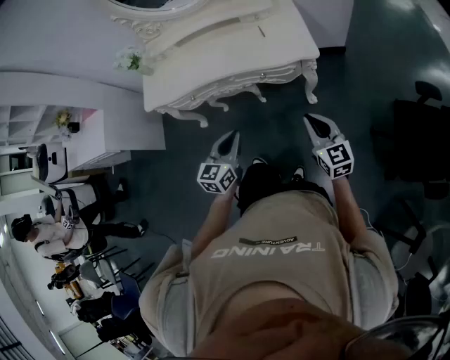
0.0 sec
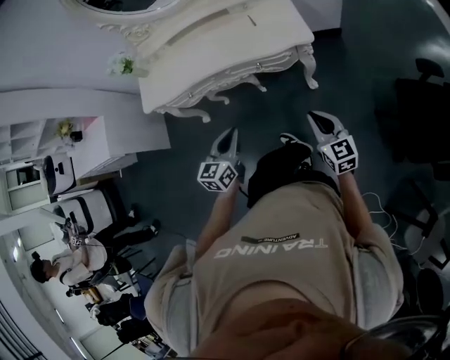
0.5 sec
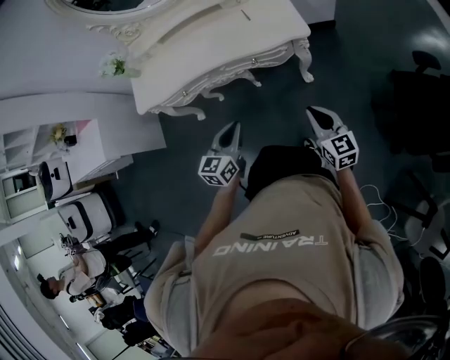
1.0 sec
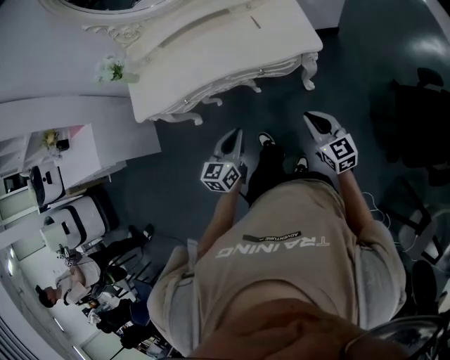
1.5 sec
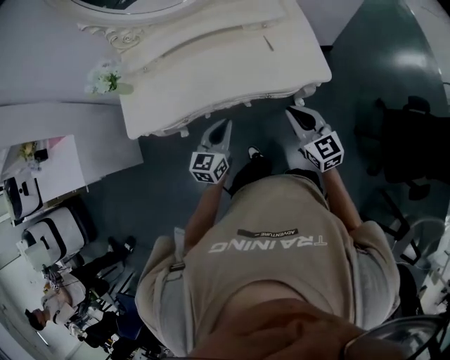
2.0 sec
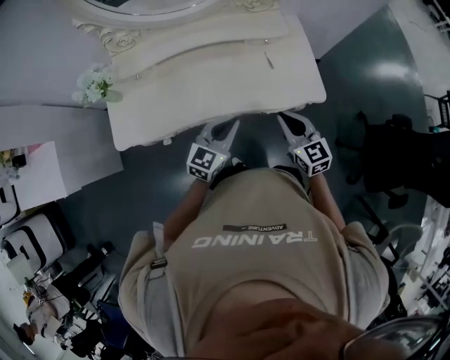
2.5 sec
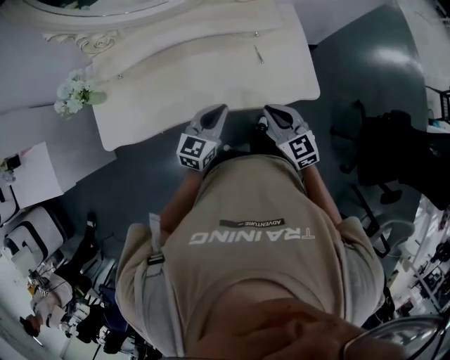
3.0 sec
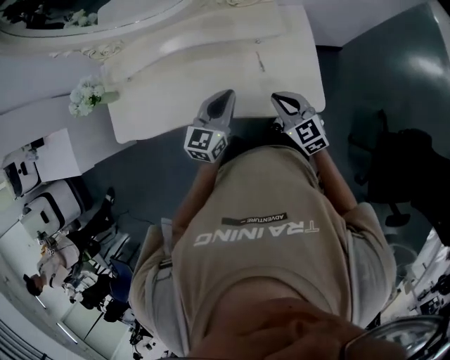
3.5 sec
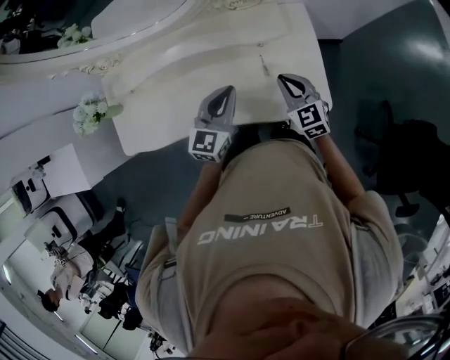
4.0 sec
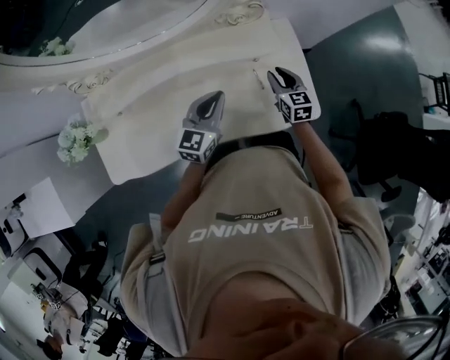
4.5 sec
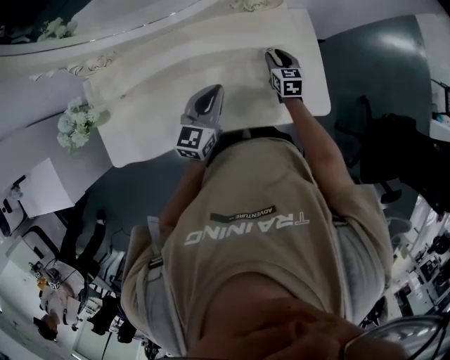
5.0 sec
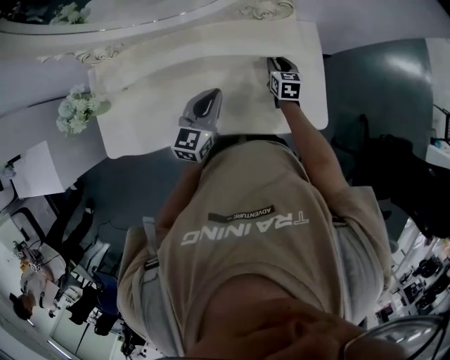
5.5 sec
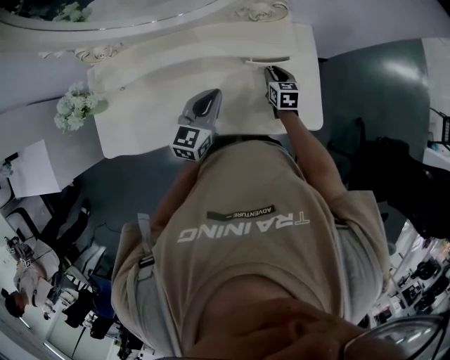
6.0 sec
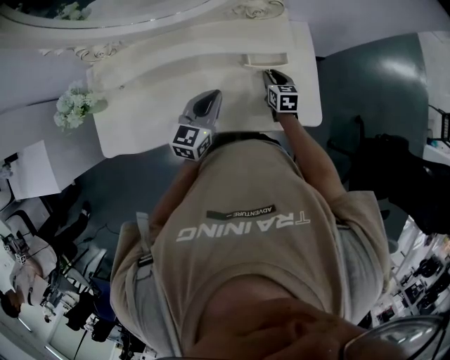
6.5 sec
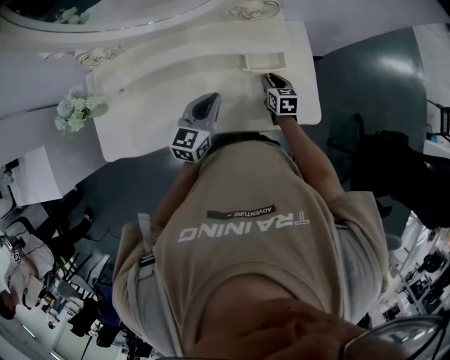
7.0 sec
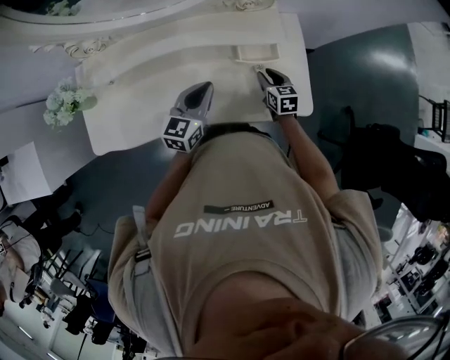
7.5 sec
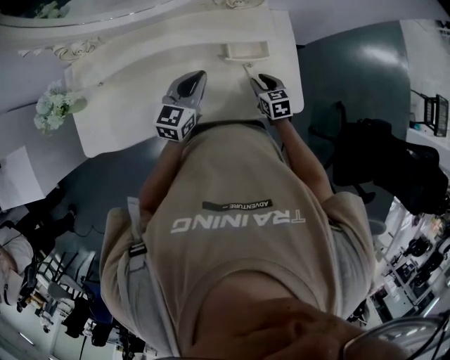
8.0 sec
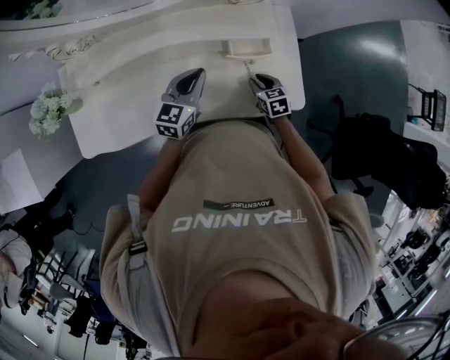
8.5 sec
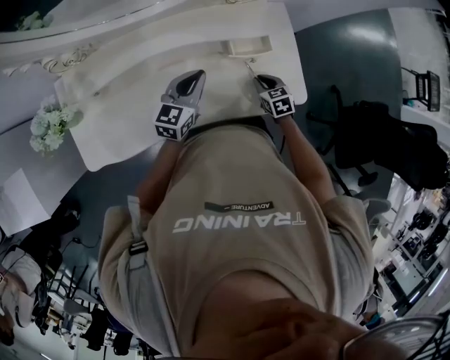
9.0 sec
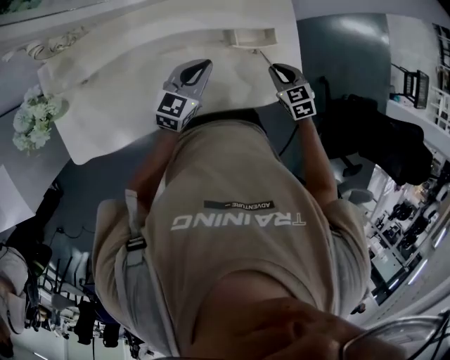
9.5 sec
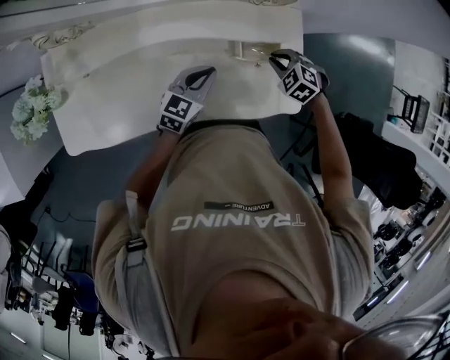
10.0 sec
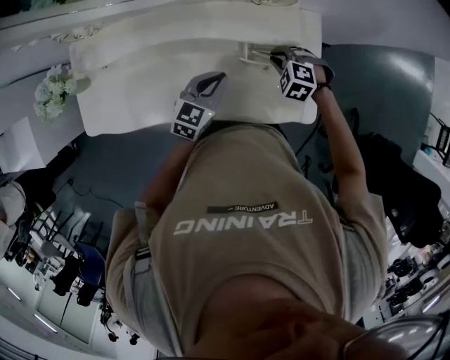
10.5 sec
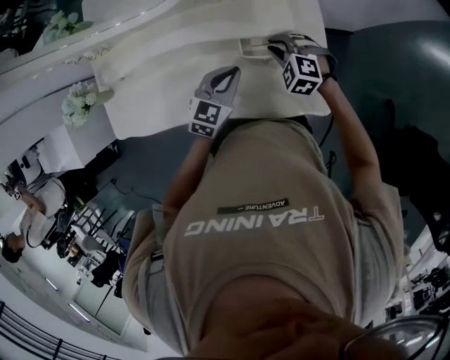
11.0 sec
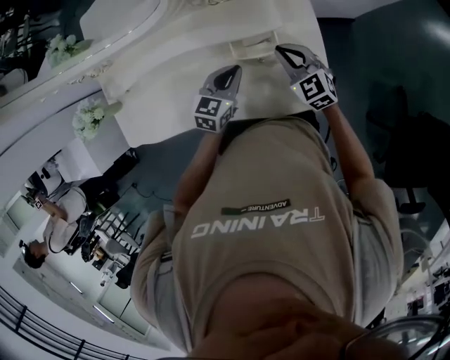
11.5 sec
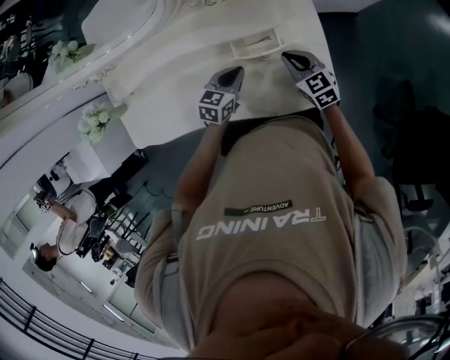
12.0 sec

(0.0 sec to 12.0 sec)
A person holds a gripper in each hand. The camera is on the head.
0.0 sec - 2.0 sec: The left gripper is displaced forward by some 25 cm. Meanwhile the right gripper goes roughly 30 cm forward and to the left.
2.0 sec - 4.0 sec: The right gripper is displaced forward by some 30 cm; the left gripper heads forward and to the right, covering some 30 cm.
4.0 sec - 6.0 sec: The right gripper travels downward, forward and to the left by about 15 cm, changes its angle by approximately 30 degrees, and opens its fingers, while the left gripper shifts roughly 10 cm to the left.
6.0 sec - 8.0 sec: The right gripper heads backward, covering some 10 cm.
8.0 sec - 10.0 sec: The right gripper goes roughly 10 cm forward, and rolls counterclockwise, seen from behind, by some 50 degrees. The left gripper moves downward, roughly 10 cm.
10.0 sec - 12.0 sec: The left gripper is displaced to the right and downward by roughly 15 cm, and swivels about 20 degrees, while the right gripper heads to the right, covering about 10 cm, and tips its fingers upward by some 40 degrees.

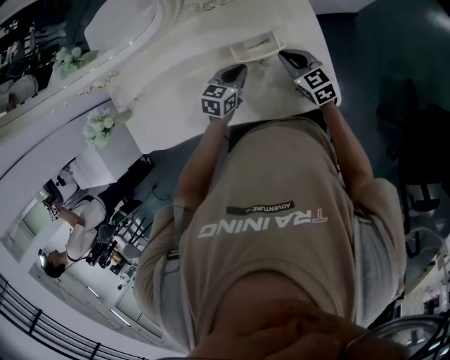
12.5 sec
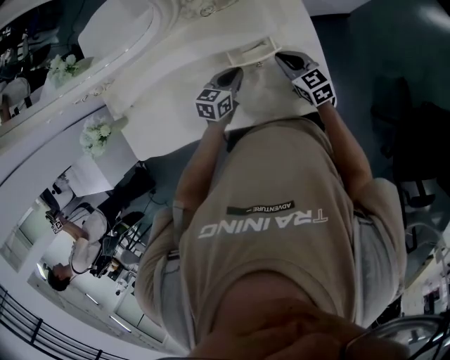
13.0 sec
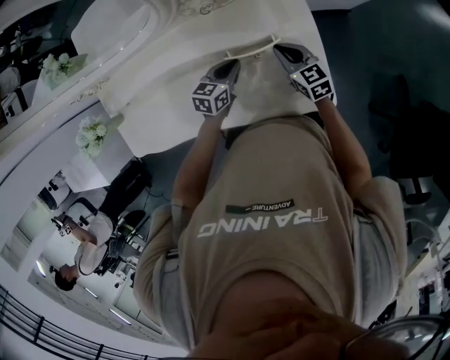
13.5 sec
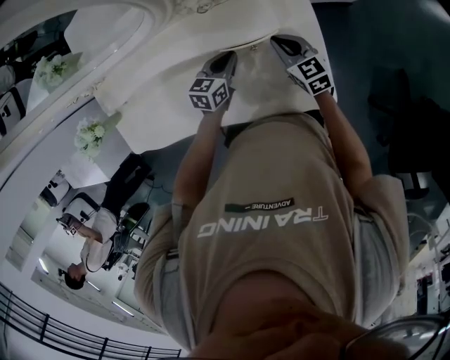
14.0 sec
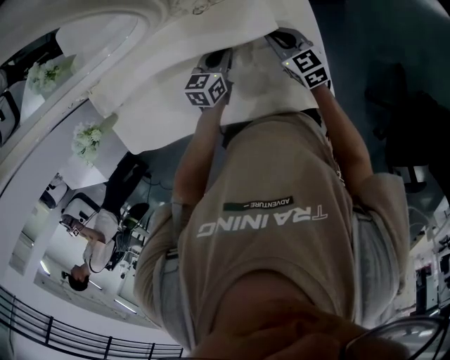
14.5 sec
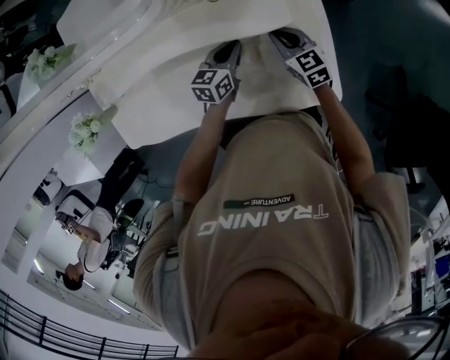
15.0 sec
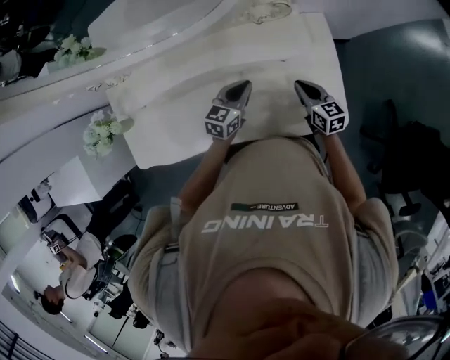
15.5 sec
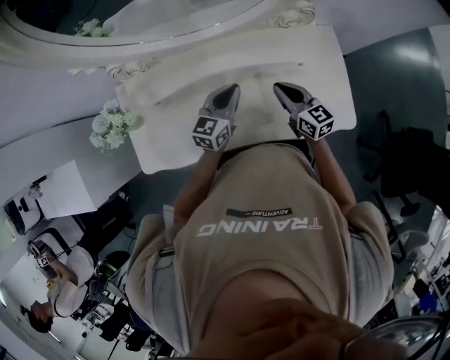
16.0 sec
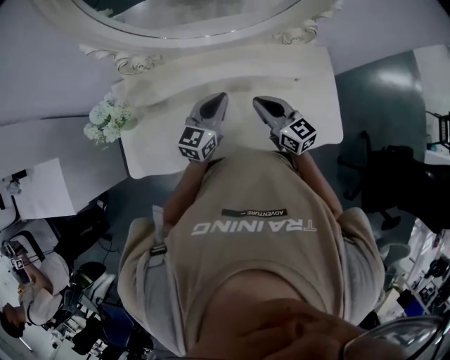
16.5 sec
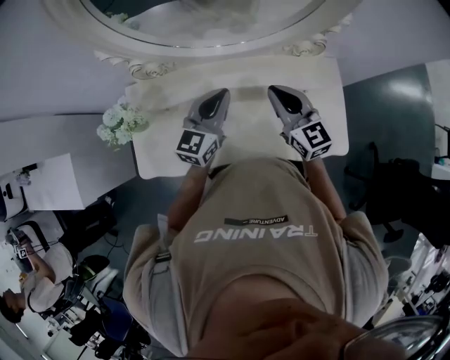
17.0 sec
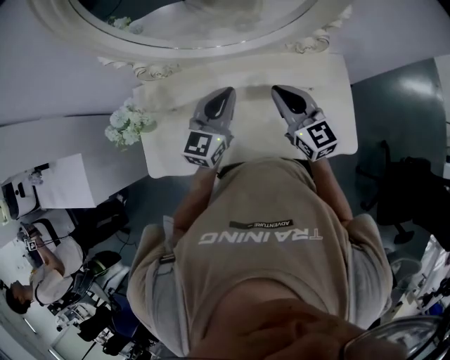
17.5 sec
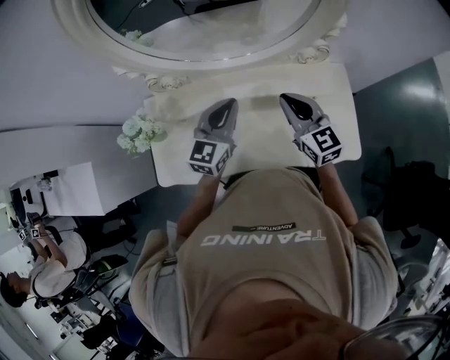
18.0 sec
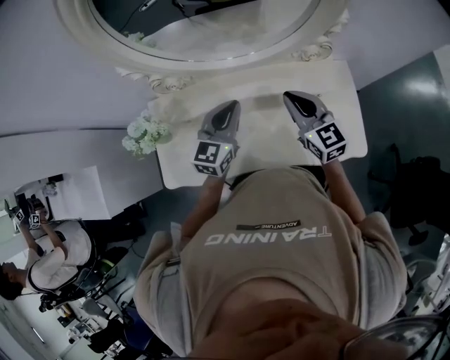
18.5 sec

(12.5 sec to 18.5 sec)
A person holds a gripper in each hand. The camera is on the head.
12.5 sec - 14.5 sec: The two grippers go about 10 cm forward.
14.5 sec - 16.5 sec: The left gripper moves to the left and upward, about 35 cm, and rotates approximately 30 degrees, while the right gripper heads to the left, upward and backward, covering approximately 35 cm.
16.5 sec - 18.5 sec: The two grippers go approximately 10 cm upward.

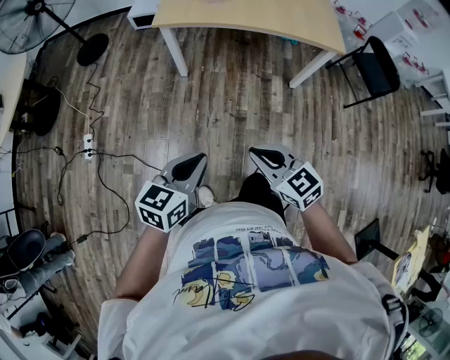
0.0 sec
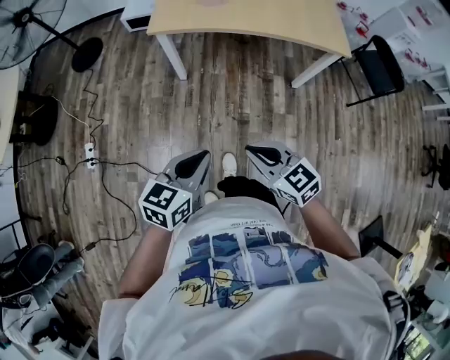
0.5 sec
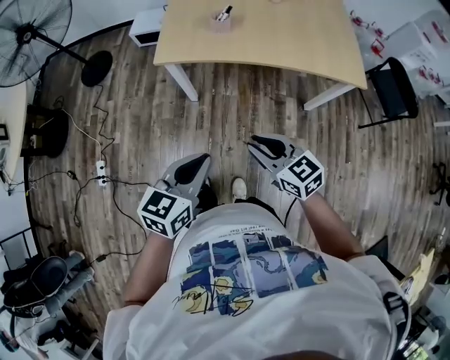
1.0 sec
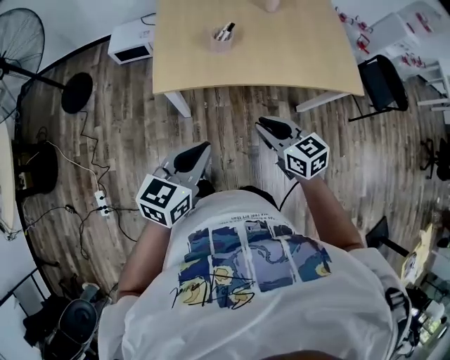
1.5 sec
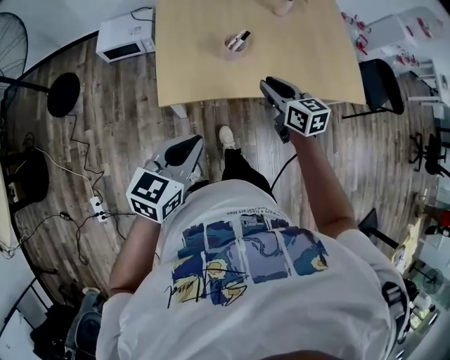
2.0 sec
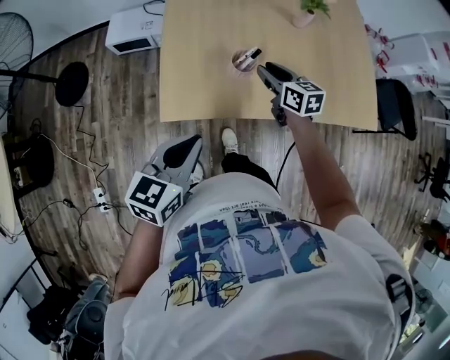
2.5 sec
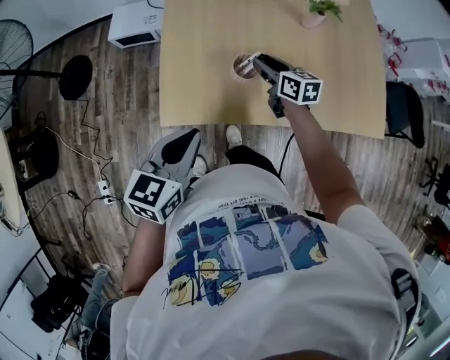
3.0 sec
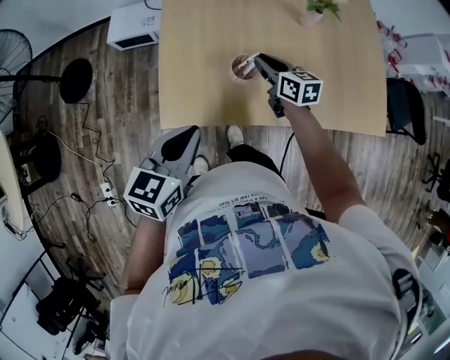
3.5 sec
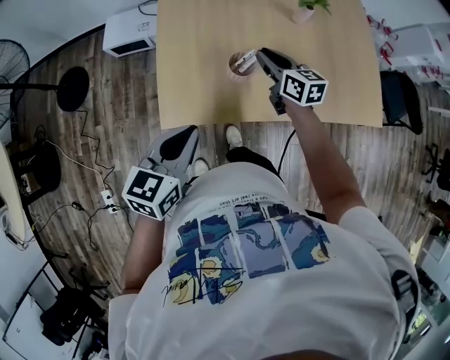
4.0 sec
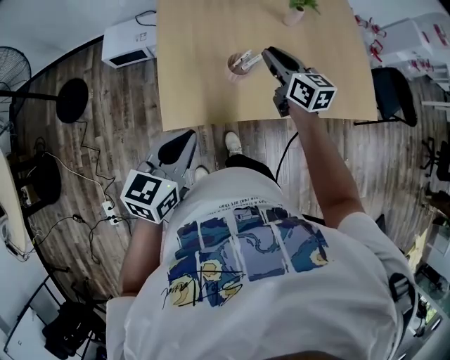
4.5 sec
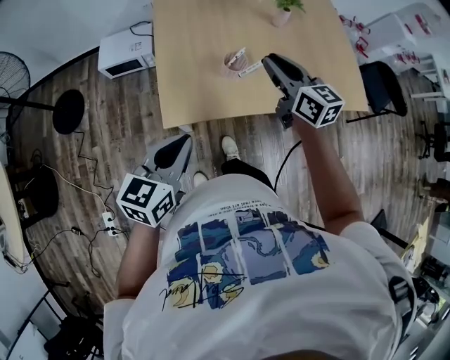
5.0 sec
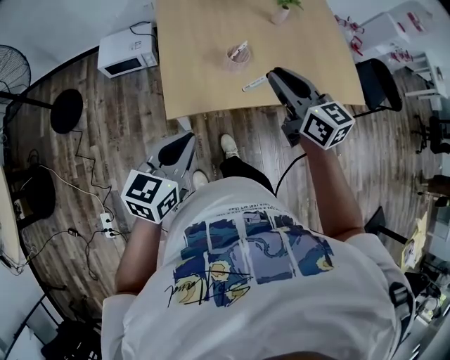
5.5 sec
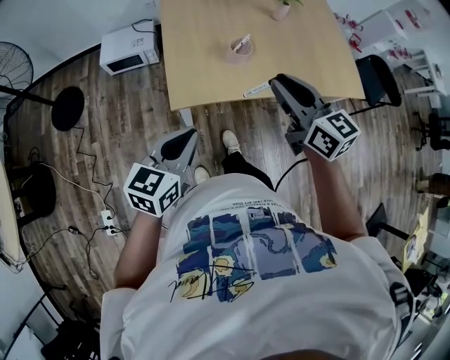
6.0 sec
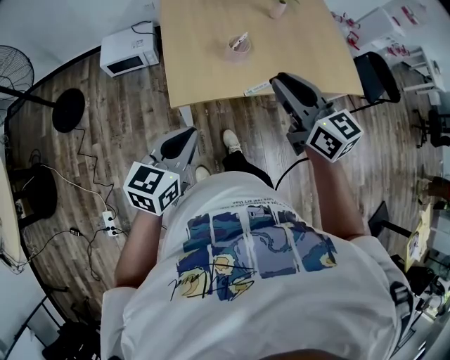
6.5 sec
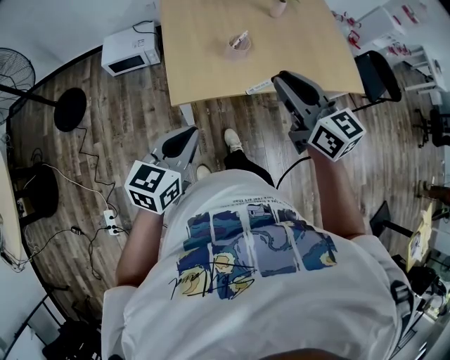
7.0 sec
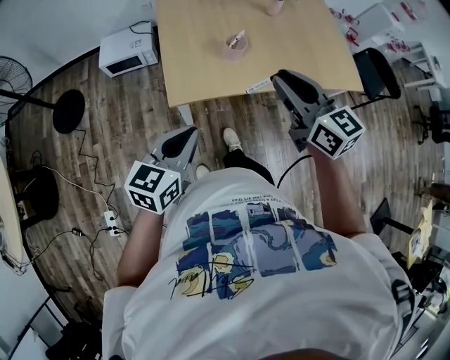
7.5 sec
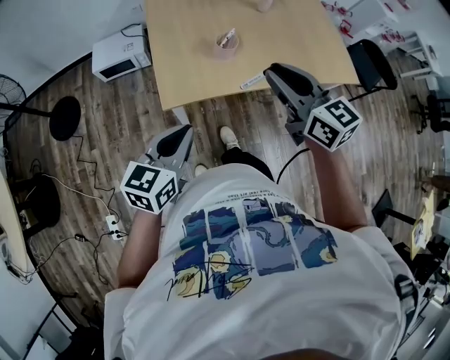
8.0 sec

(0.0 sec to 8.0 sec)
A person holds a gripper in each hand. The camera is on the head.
0.0 sec - 2.0 sec: The pair of grippers is taken forward, roughly 60 cm. The right gripper turns by about 30 degrees.
2.0 sec - 4.0 sec: Both grippers move forward, about 15 cm.
4.0 sec - 6.0 sec: The right gripper goes about 30 cm backward and upward, while the left gripper goes about 15 cm backward and to the left.
6.0 sec - 8.0 sec: The grippers make only small movements.

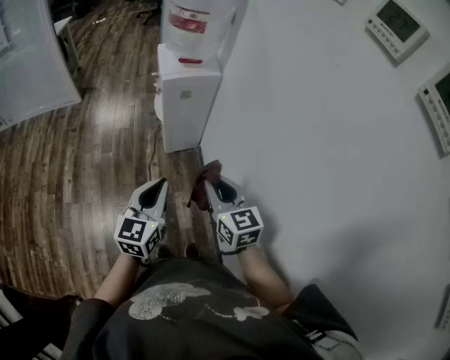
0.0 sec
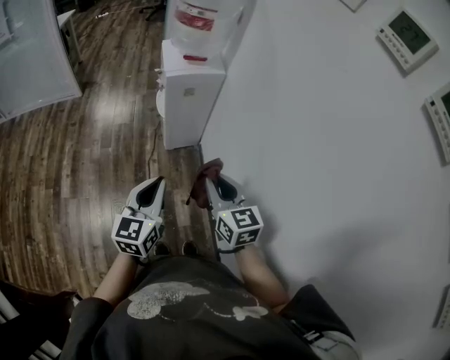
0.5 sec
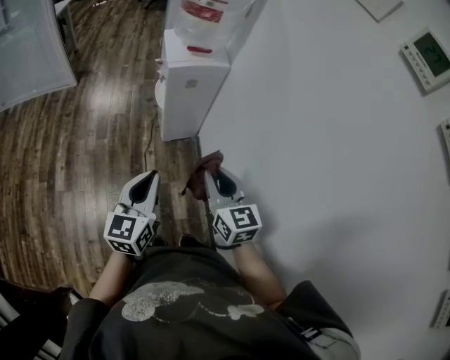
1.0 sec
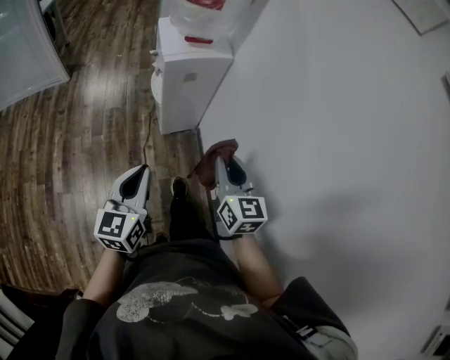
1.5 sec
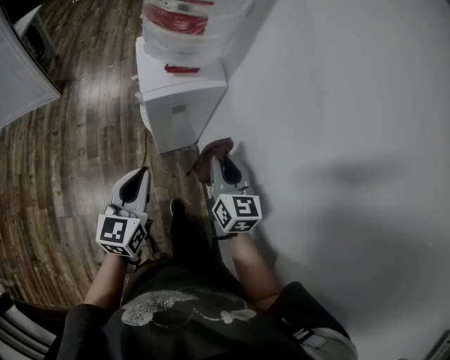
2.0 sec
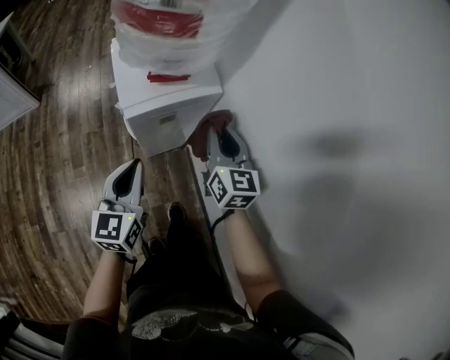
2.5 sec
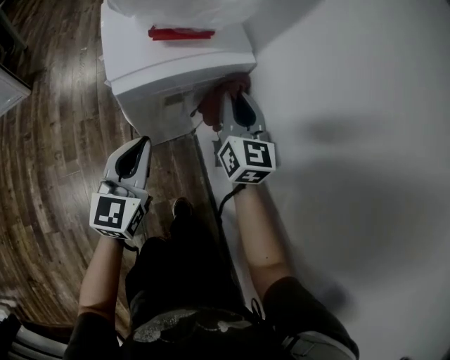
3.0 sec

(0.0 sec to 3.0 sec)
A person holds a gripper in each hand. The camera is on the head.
0.0 sec - 1.5 sec: The right gripper heads forward, covering roughly 10 cm; the left gripper heads to the left and forward, covering some 10 cm.
1.5 sec - 3.0 sec: The left gripper is displaced forward and downward by some 35 cm, while the right gripper moves forward, approximately 40 cm.
